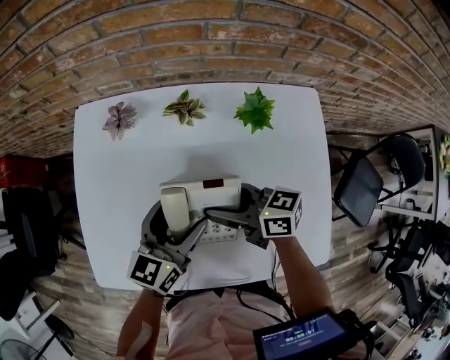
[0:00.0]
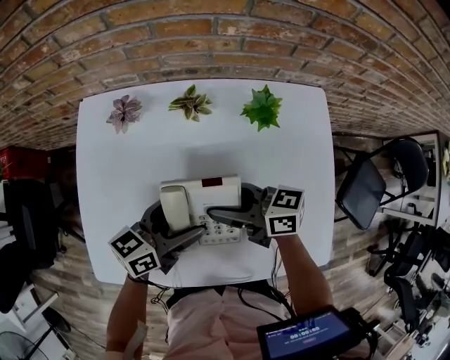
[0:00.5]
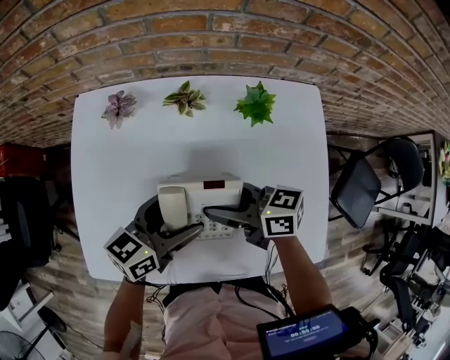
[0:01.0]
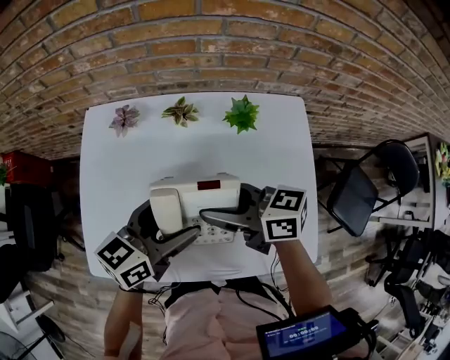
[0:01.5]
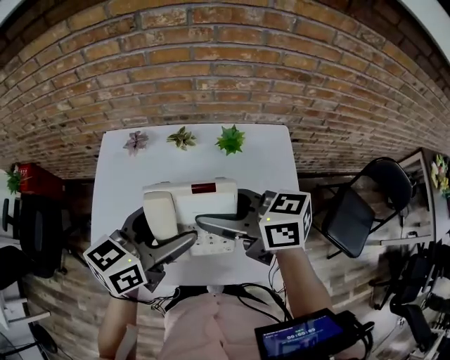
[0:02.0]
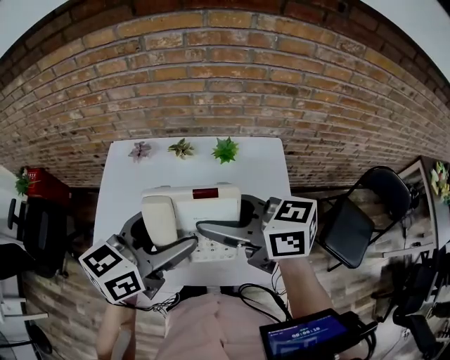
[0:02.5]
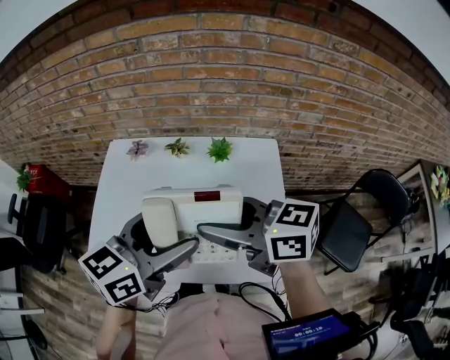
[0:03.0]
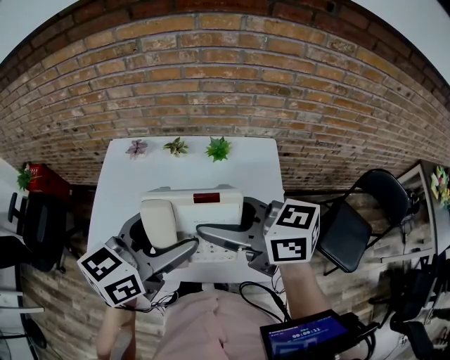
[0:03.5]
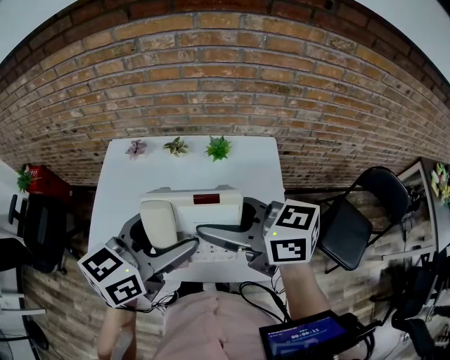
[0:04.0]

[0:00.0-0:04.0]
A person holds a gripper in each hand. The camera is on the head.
0:00.0 to 0:02.0: The grippers both shift upward by some 20 cm.
0:02.0 to 0:04.0: The grippers both shift backward and upward by roughly 10 cm.

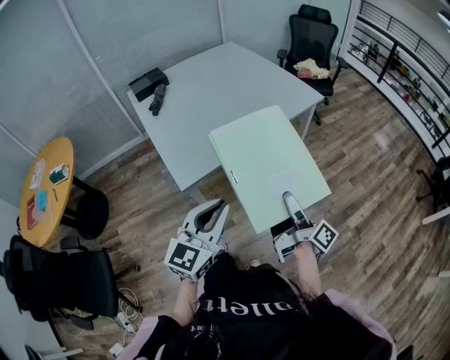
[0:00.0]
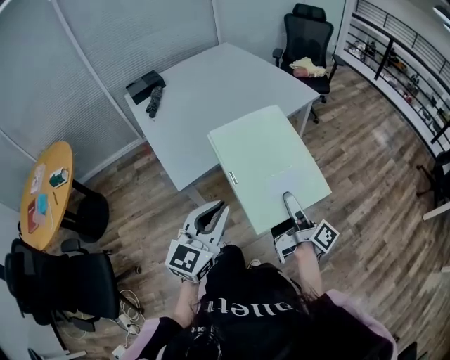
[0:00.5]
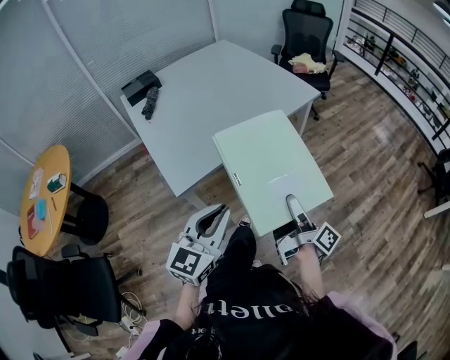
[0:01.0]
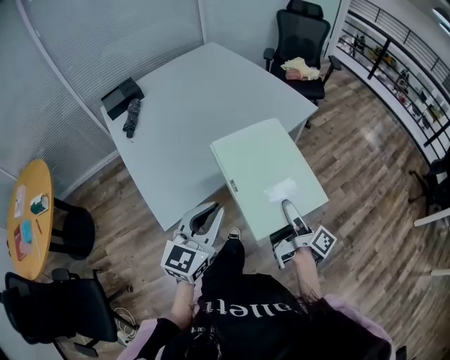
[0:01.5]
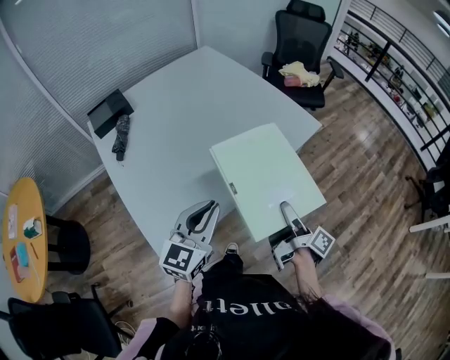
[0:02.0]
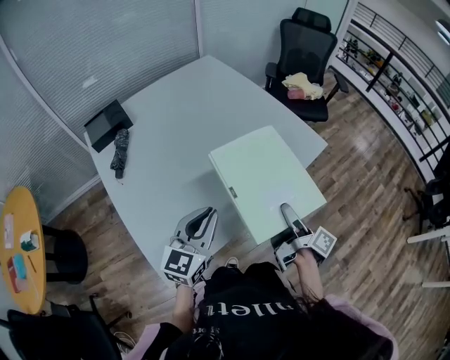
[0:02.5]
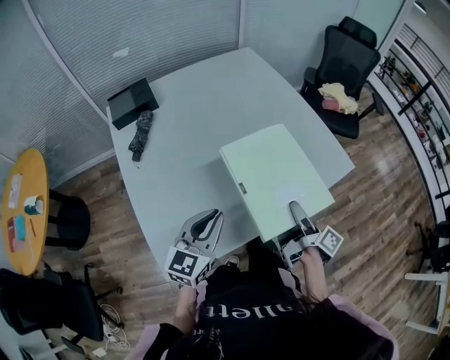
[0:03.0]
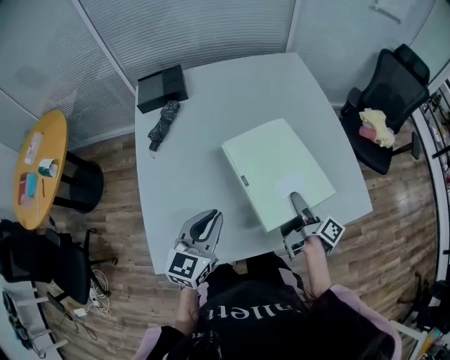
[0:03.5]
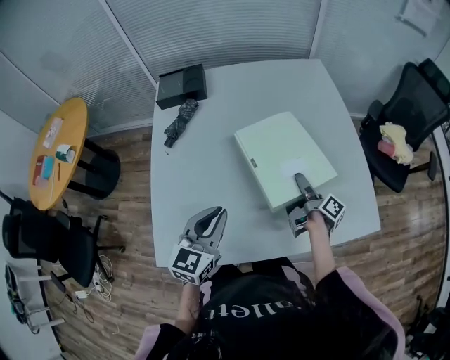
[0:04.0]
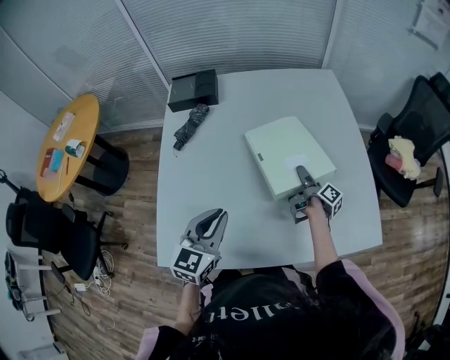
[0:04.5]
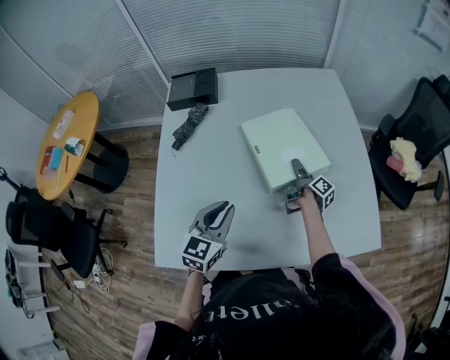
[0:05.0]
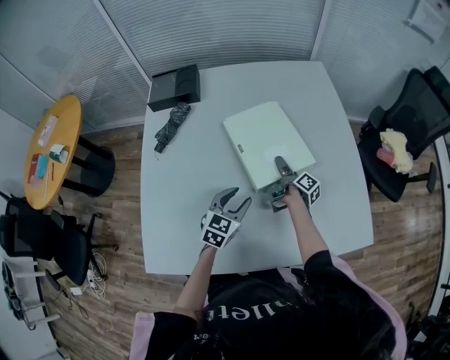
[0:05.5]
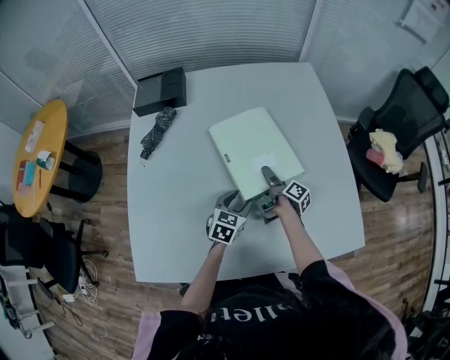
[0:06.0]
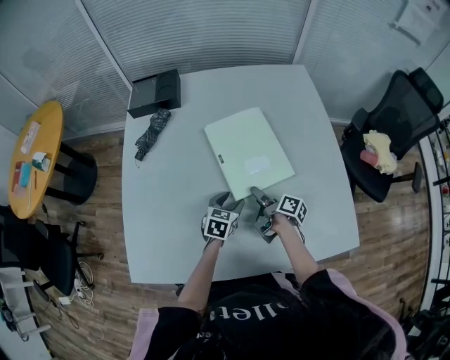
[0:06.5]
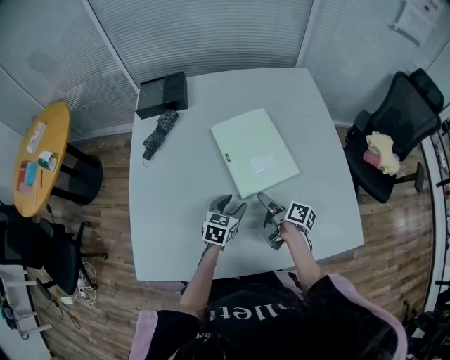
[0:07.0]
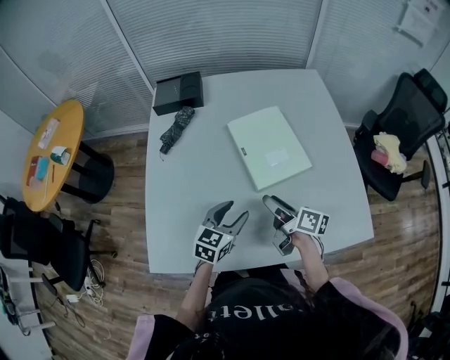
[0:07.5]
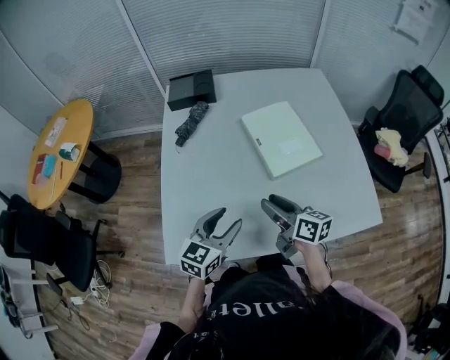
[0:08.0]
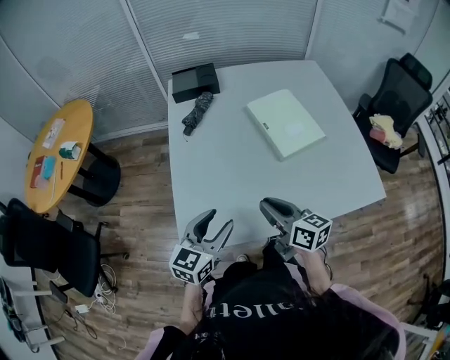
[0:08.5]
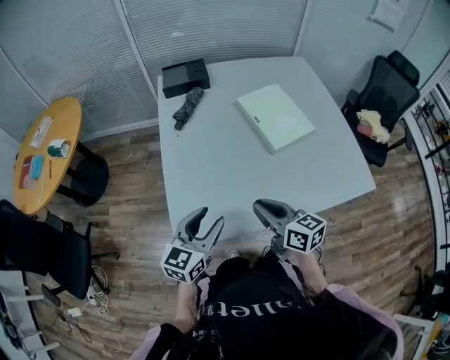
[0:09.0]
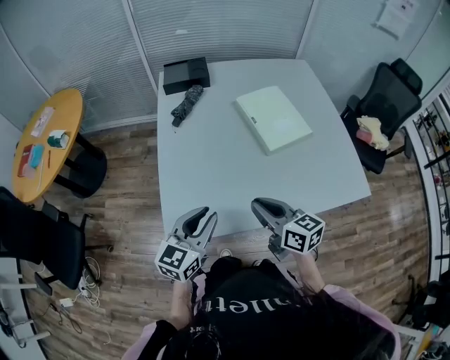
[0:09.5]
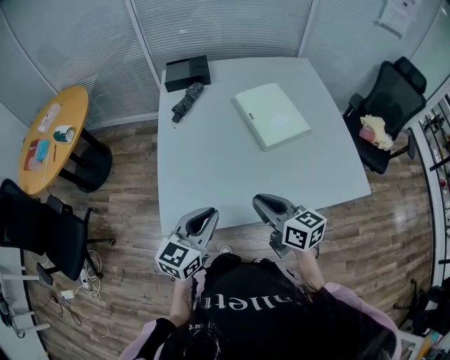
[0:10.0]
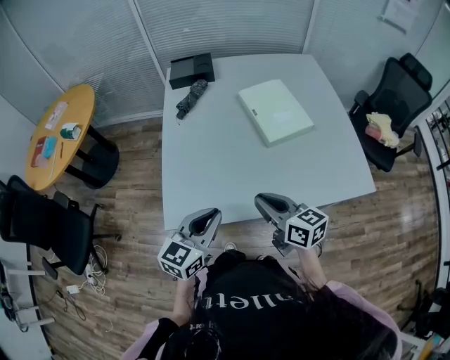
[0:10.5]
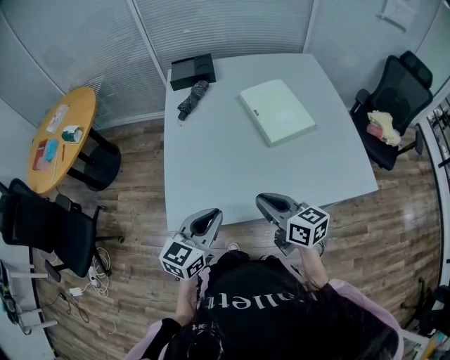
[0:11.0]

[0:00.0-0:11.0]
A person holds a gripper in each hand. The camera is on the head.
0:00.0 to 0:02.0: The left gripper moves about 30 cm.
0:02.0 to 0:03.5: The left gripper shifts by about 20 cm, and changes its angle by some 30 degrees.
0:03.5 to 0:05.5: The left gripper changes place by roughly 20 cm, and opens its fingers.
0:05.5 to 0:07.5: The left gripper reaches roughly 10 cm downward, then returns.
0:07.5 to 0:09.0: The left gripper changes place by about 25 cm.
0:09.0 to 0:11.0: The left gripper ends up approximately 5 cm from where it was, and closes its fingers.

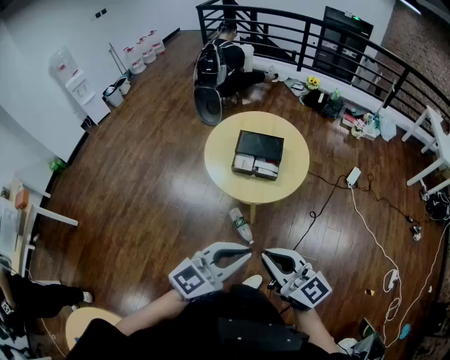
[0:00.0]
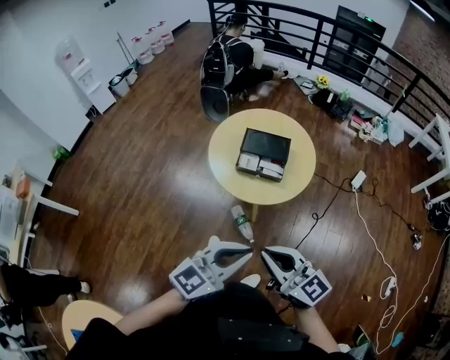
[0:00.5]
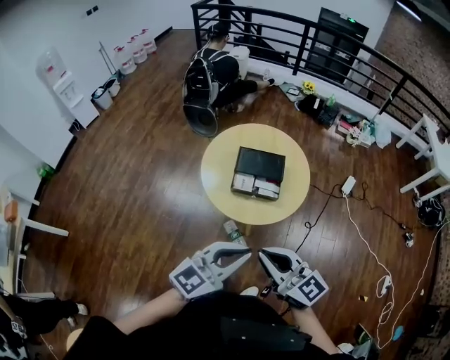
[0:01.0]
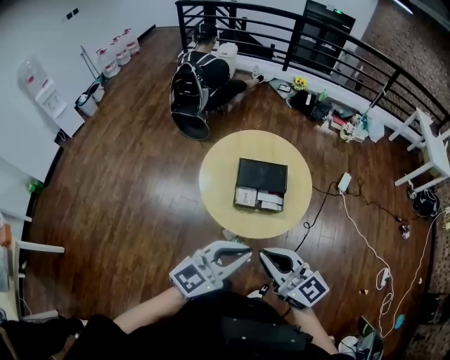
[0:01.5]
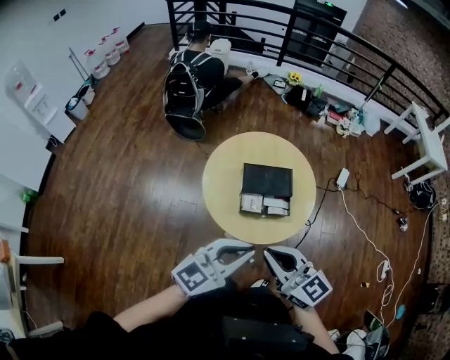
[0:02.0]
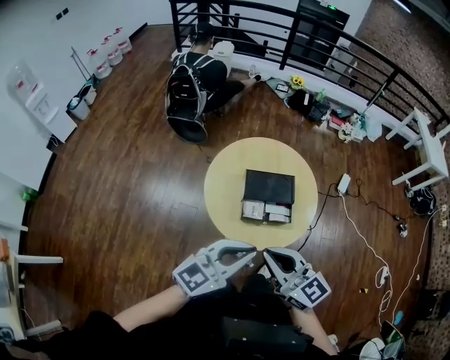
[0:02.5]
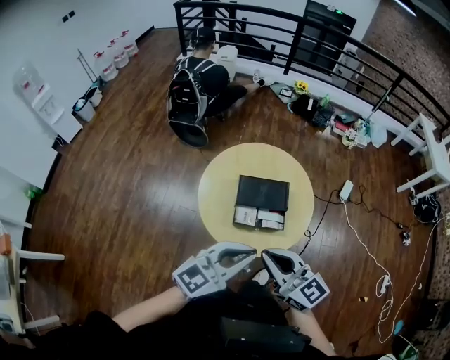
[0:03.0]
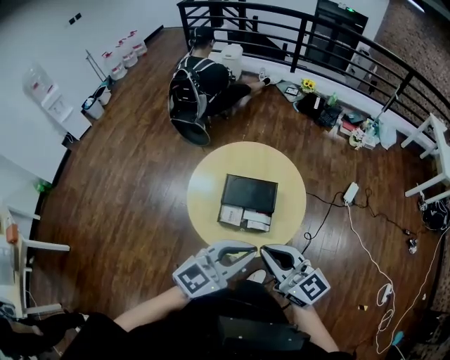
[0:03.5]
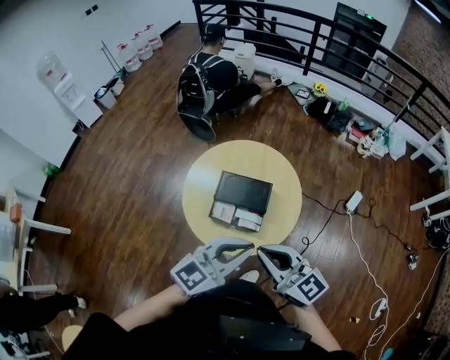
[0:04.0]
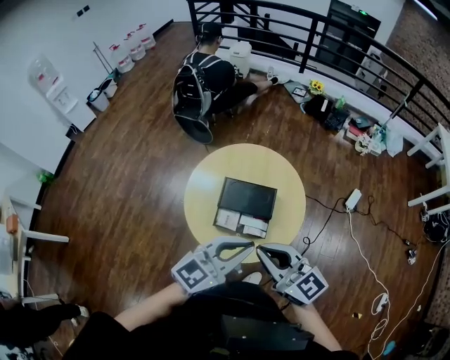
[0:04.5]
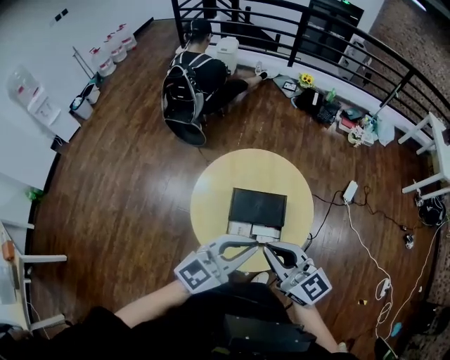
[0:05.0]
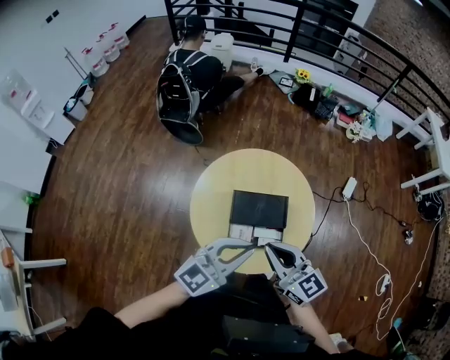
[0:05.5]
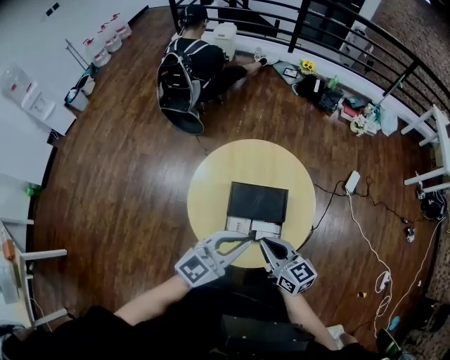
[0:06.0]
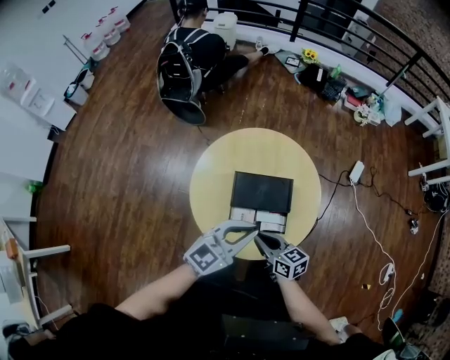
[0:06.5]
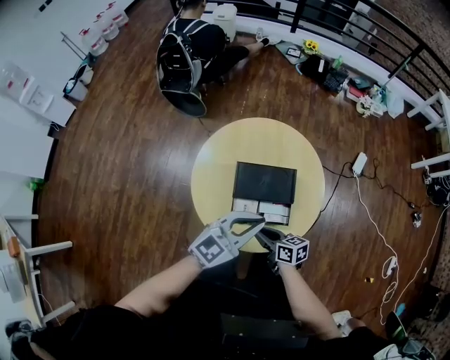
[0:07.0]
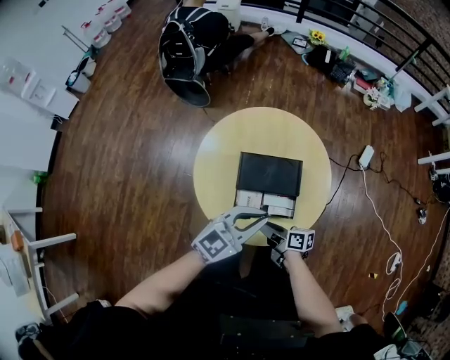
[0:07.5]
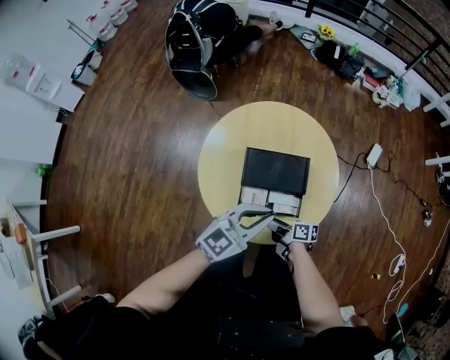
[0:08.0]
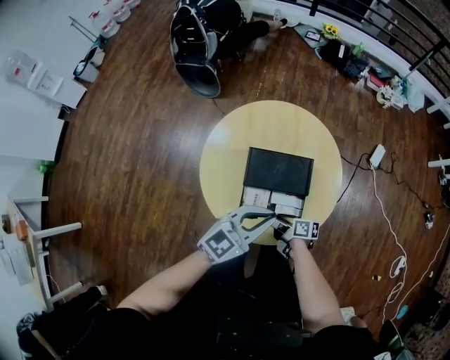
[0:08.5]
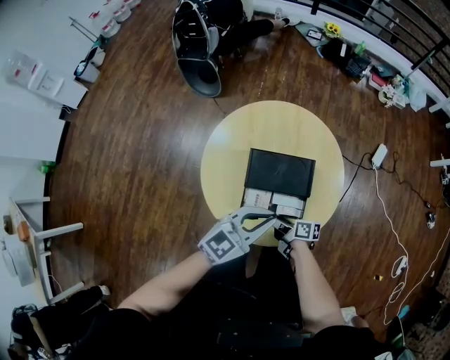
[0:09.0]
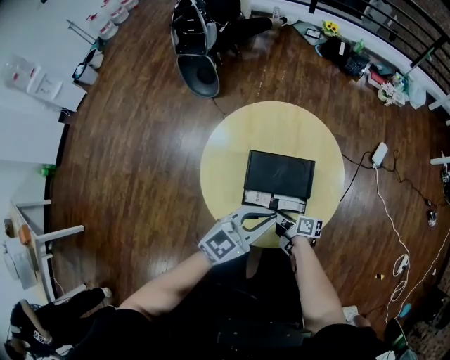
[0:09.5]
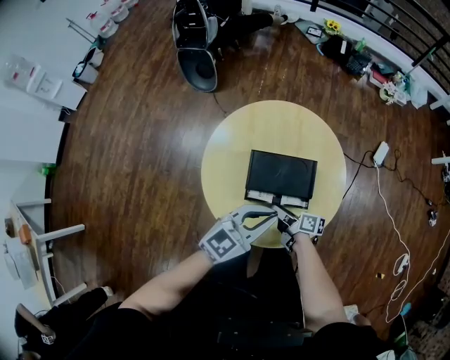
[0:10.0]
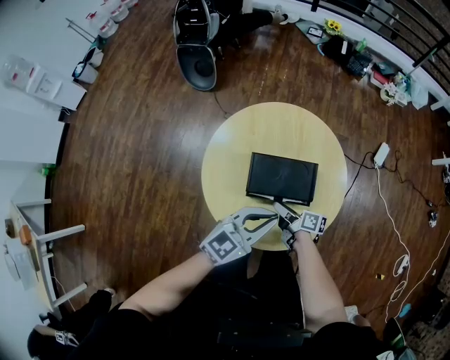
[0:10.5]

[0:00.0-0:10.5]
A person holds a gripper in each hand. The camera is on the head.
0:00.0 to 0:02.0: The pair of grippers is taken forward and to the left, roughly 50 cm.
0:02.0 to 0:04.0: Both grippers travel together to the right, about 35 cm.
0:04.0 to 0:06.5: The left gripper travels to the left, forward and downward by approximately 35 cm. The right gripper is displaced downward, to the left and forward by approximately 40 cm, and rotates approximately 40 degrees.
0:06.5 to 0:08.5: The left gripper is displaced downward by roughly 10 cm; the right gripper moves downward, about 20 cm, swivels some 40 degrees, and opens.
0:08.5 to 0:10.5: The left gripper changes place by some 5 cm. Meanwhile the right gripper moves forward, roughly 10 cm.

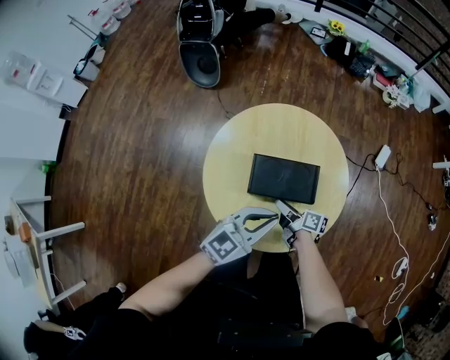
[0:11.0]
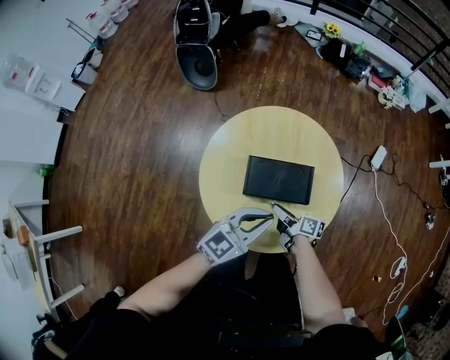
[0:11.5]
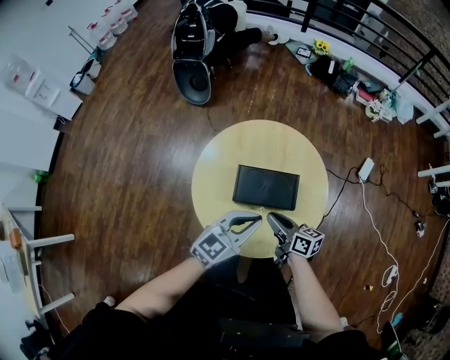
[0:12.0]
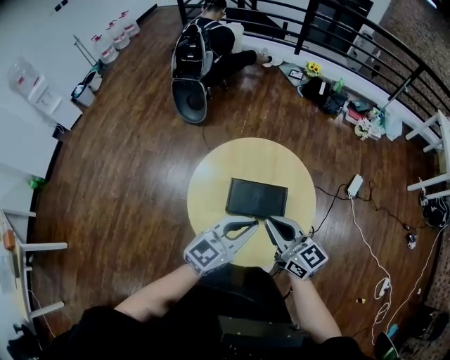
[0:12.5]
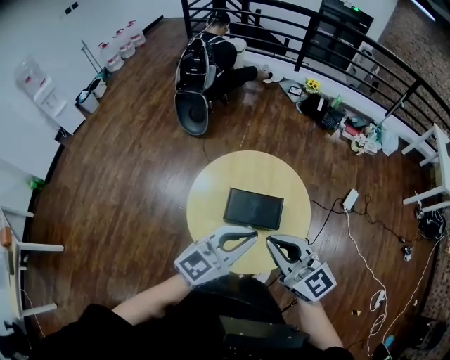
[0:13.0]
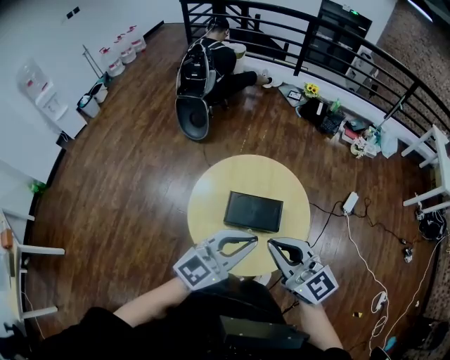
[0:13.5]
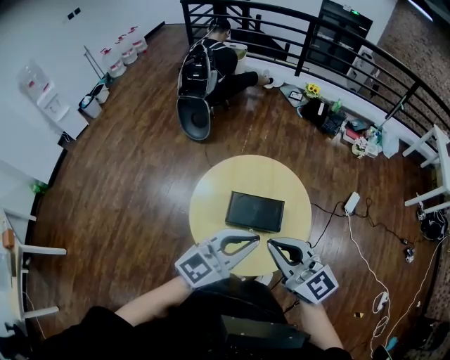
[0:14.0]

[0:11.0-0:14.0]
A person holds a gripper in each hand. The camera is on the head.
0:11.0 to 0:12.5: The right gripper moves upward, some 35 cm, and rolls counterclockwise, seen from behind, by roughly 60 degrees; the left gripper shifts roughly 15 cm upward.
0:12.5 to 0:14.0: Both grippers move upward and backward, approximately 15 cm.
